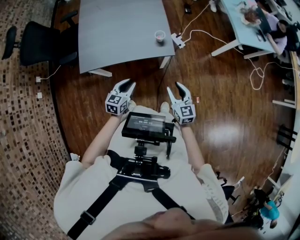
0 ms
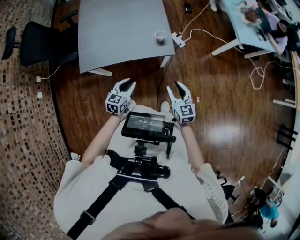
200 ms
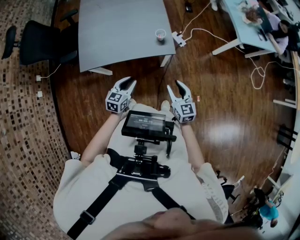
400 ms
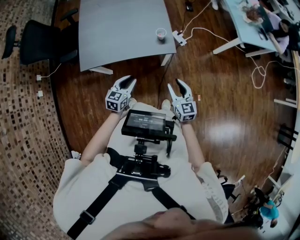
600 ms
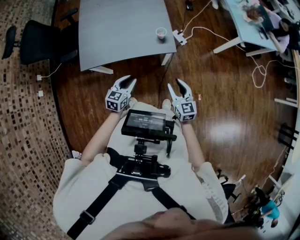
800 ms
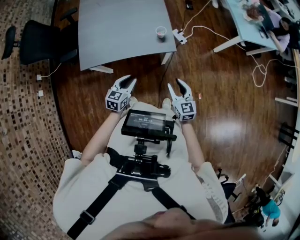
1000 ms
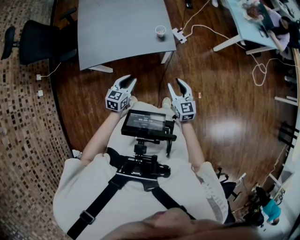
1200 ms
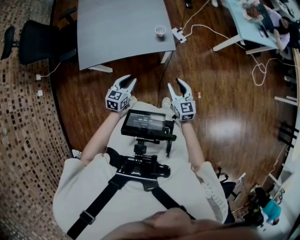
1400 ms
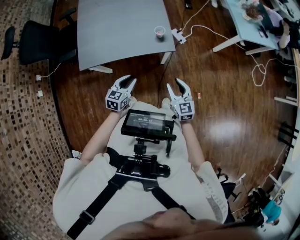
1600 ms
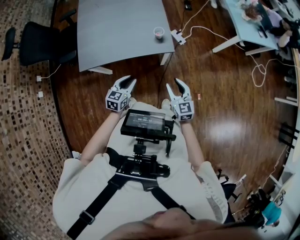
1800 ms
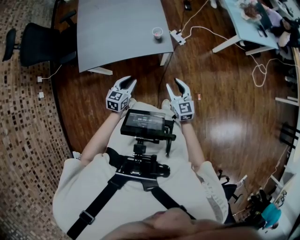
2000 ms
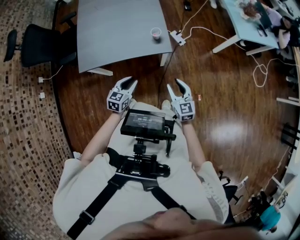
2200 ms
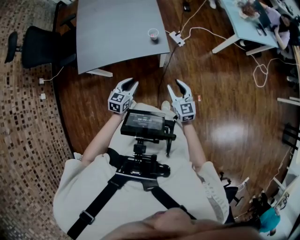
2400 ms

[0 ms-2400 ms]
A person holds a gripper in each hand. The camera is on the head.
0 ms to 1200 ms: Both grippers stay put.
1200 ms to 2400 ms: The grippers move only a little.

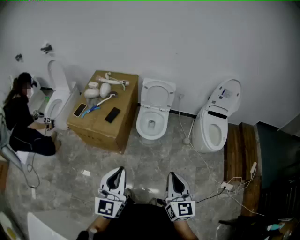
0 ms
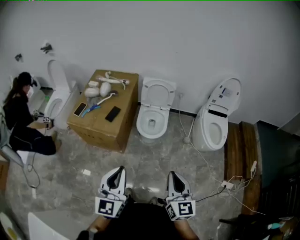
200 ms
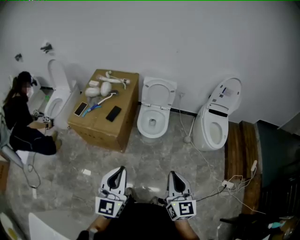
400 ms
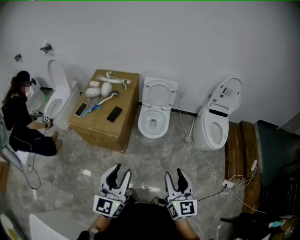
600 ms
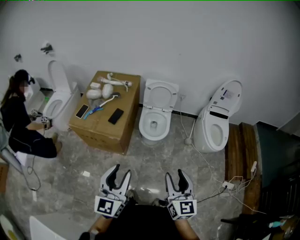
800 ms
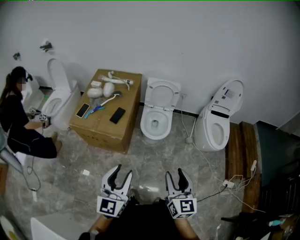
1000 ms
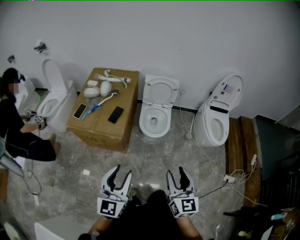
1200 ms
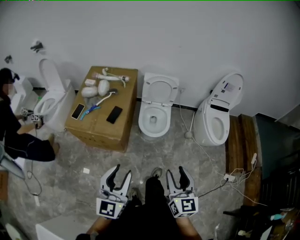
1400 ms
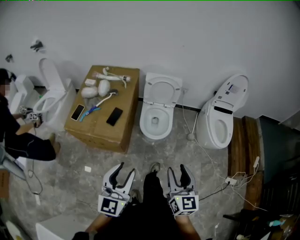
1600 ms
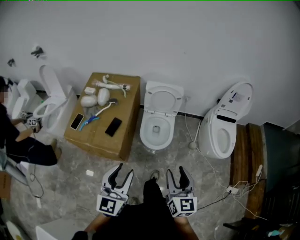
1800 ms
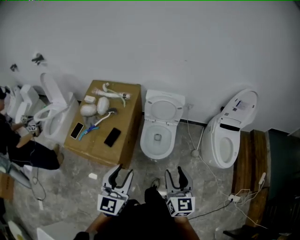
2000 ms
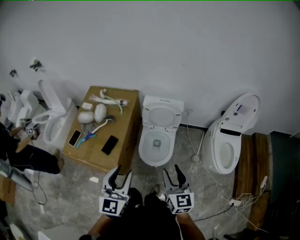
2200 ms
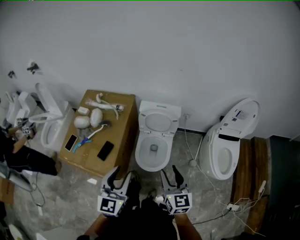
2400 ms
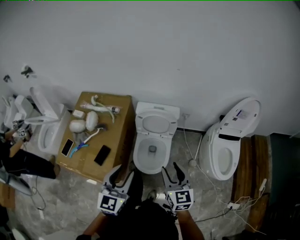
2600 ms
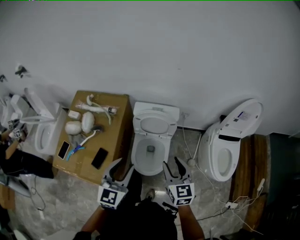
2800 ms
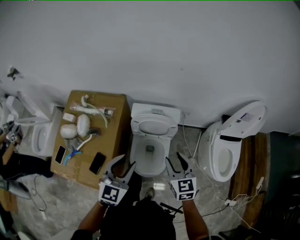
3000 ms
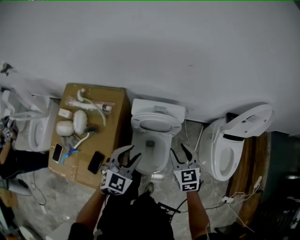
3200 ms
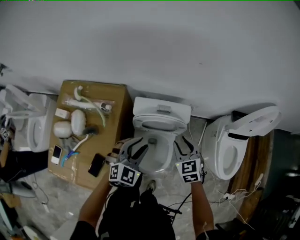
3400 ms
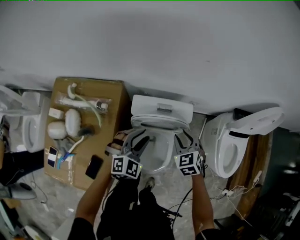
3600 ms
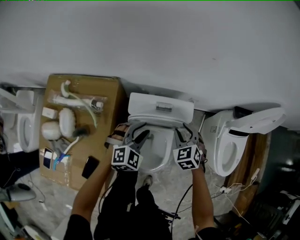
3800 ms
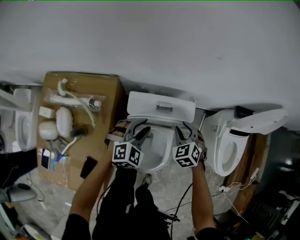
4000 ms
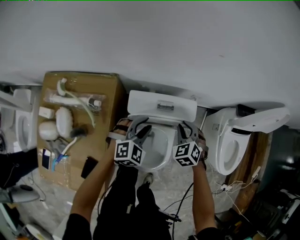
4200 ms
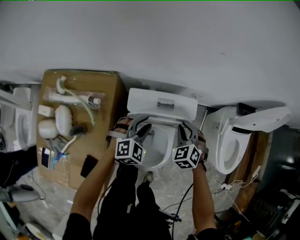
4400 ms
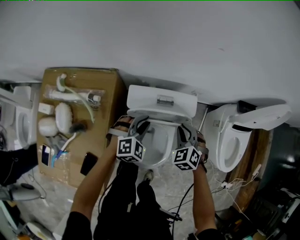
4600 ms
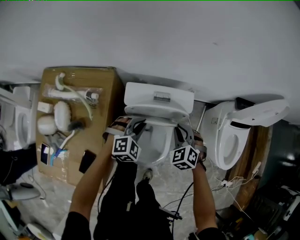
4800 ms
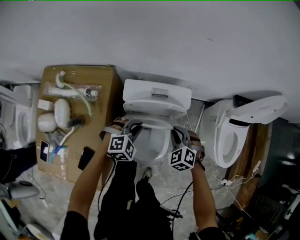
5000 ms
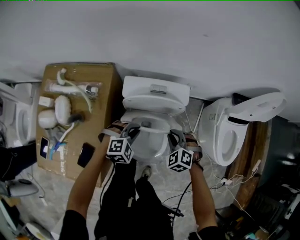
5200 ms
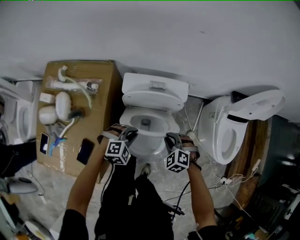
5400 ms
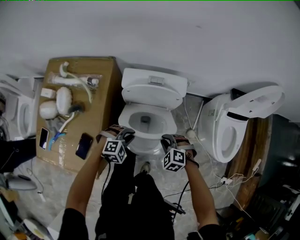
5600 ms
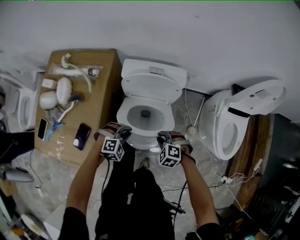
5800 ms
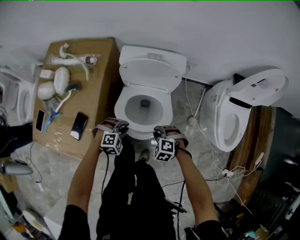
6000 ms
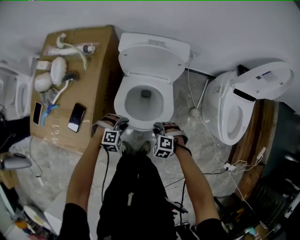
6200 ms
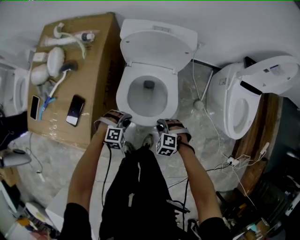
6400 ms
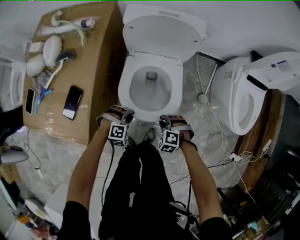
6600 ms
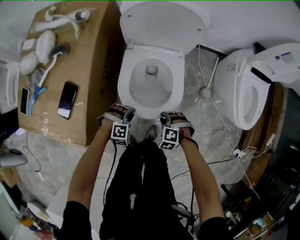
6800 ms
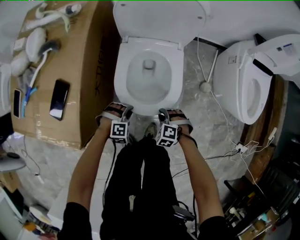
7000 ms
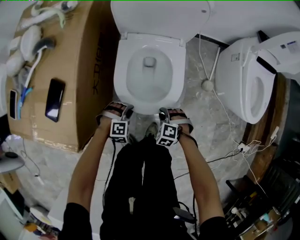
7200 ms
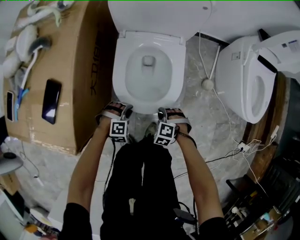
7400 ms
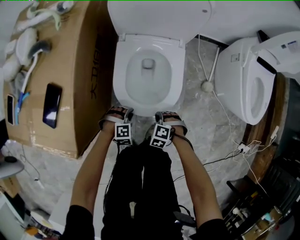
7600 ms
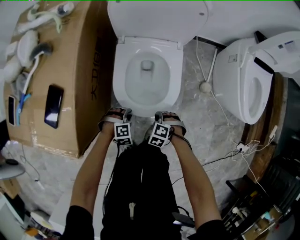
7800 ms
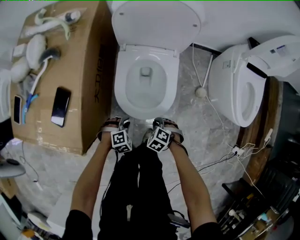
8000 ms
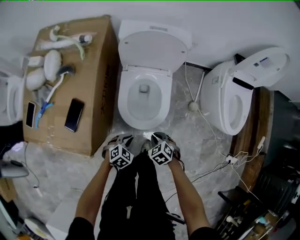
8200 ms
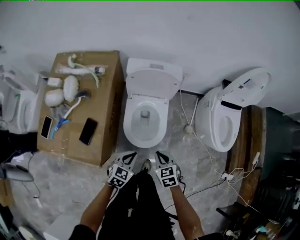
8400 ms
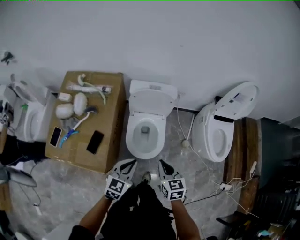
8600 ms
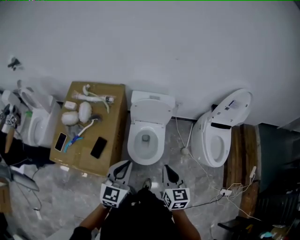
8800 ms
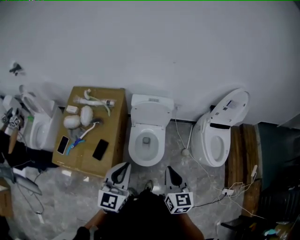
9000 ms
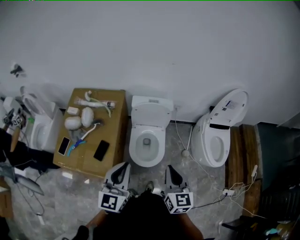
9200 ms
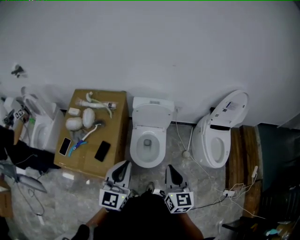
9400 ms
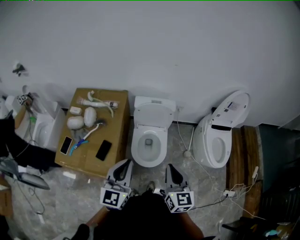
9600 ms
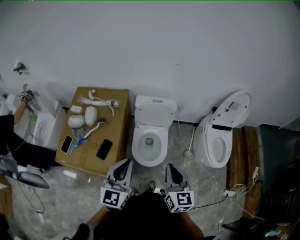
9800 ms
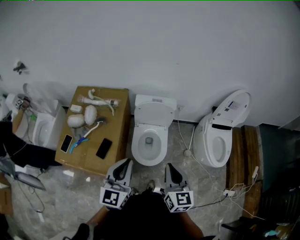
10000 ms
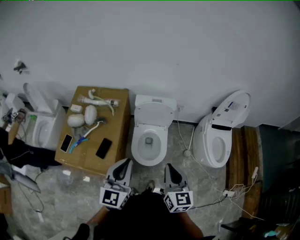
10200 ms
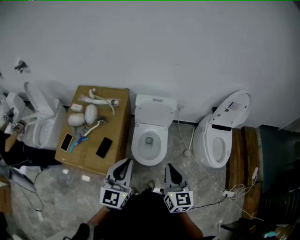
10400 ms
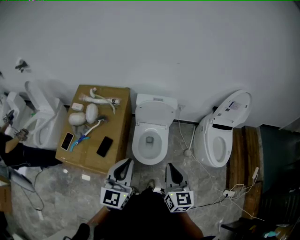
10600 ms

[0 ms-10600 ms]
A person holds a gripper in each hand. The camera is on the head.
0 ms to 1600 ms: Both grippers travel together forward and to the left, about 15 cm. The right gripper opens up, while the left gripper opens.
1600 ms to 3000 ms: Both grippers are carried forward, roughly 50 cm. The left gripper rotates roughly 20 degrees.
3000 ms to 4600 ms: The two grippers go roughly 35 cm downward and forward. The right gripper turns by some 40 degrees, and closes its fingers; the left gripper rotates some 40 degrees.
4600 ms to 6000 ms: The two grippers go about 30 cm backward and downward. The left gripper swivels about 20 degrees. The right gripper rotates approximately 40 degrees.
6000 ms to 7600 ms: The two grippers go roughly 30 cm downward.
7600 ms to 9000 ms: Both grippers move upward, approximately 70 cm. The right gripper tilts its fingers some 60 degrees upward. The left gripper tilts its fingers roughly 60 degrees upward, and closes its fingers.
9000 ms to 10600 ms: There are only small adjustments of the grippers.

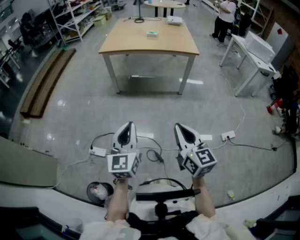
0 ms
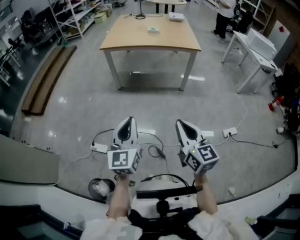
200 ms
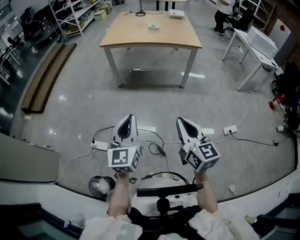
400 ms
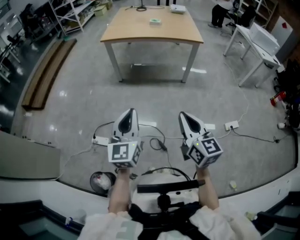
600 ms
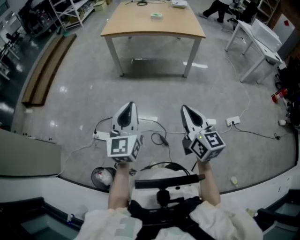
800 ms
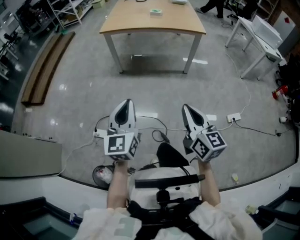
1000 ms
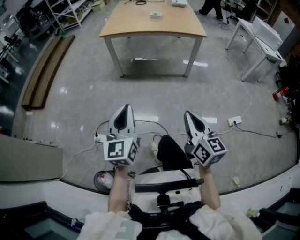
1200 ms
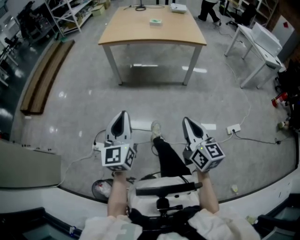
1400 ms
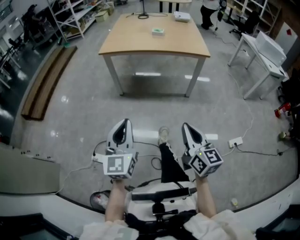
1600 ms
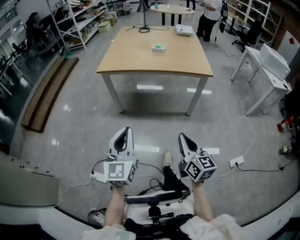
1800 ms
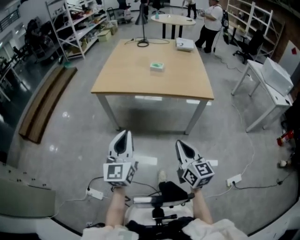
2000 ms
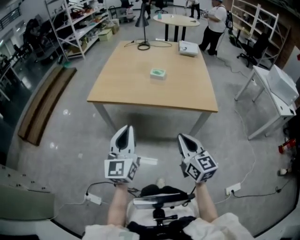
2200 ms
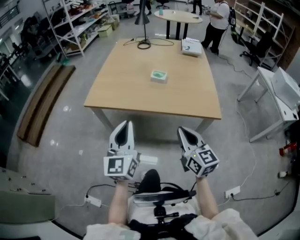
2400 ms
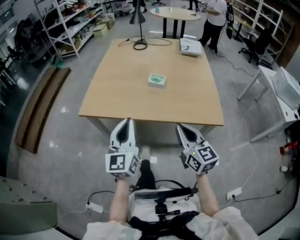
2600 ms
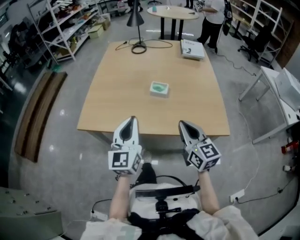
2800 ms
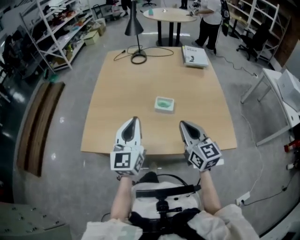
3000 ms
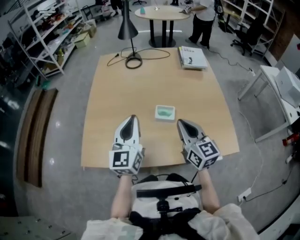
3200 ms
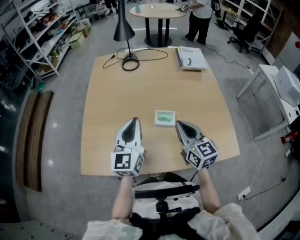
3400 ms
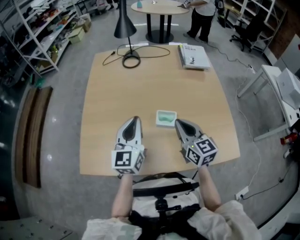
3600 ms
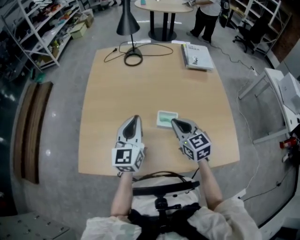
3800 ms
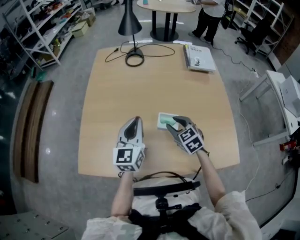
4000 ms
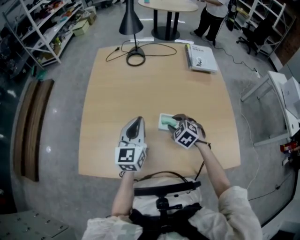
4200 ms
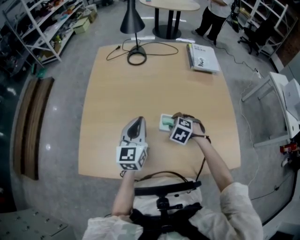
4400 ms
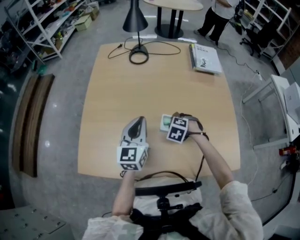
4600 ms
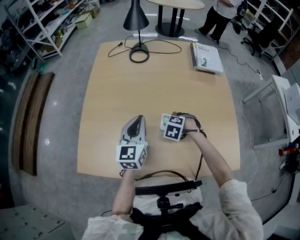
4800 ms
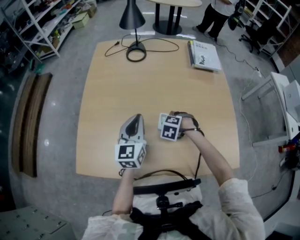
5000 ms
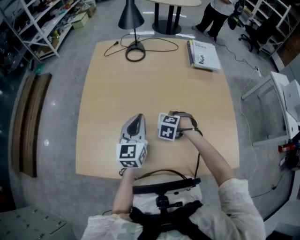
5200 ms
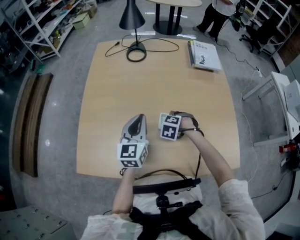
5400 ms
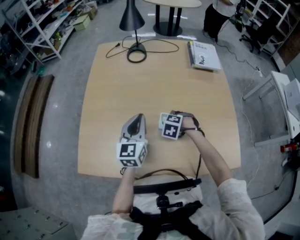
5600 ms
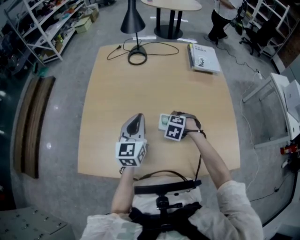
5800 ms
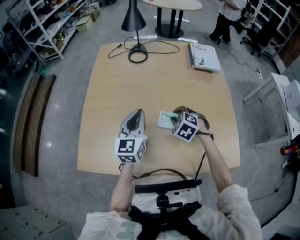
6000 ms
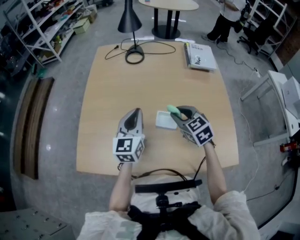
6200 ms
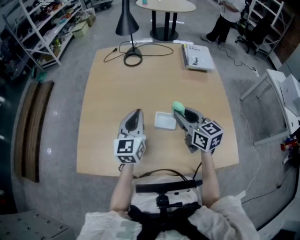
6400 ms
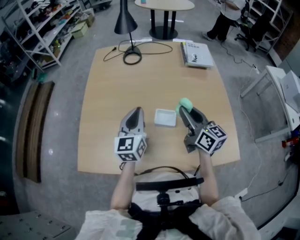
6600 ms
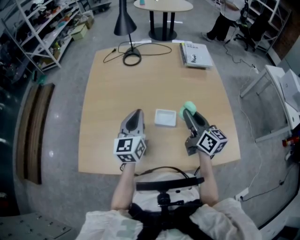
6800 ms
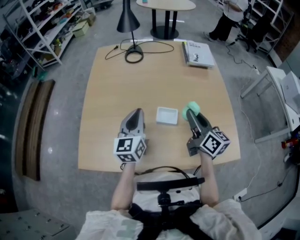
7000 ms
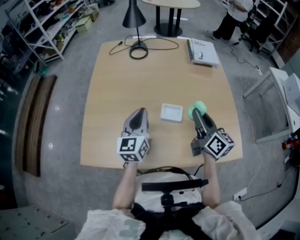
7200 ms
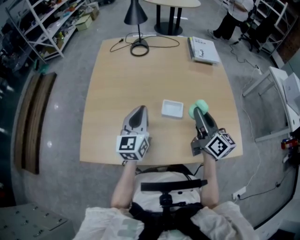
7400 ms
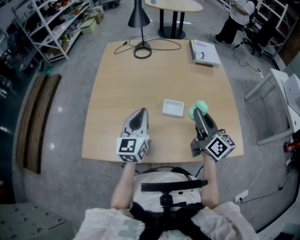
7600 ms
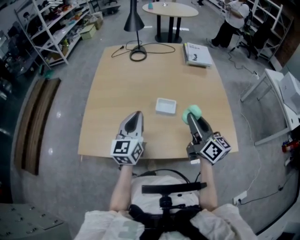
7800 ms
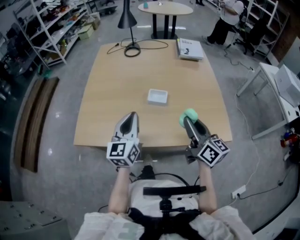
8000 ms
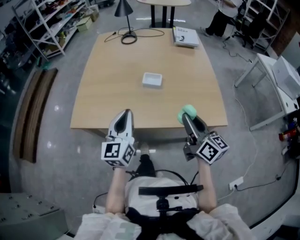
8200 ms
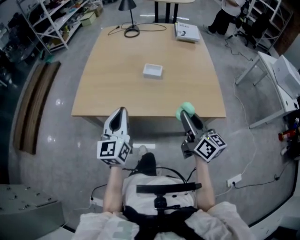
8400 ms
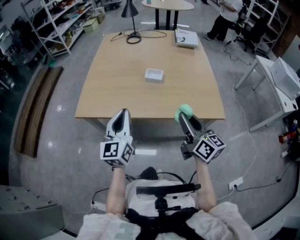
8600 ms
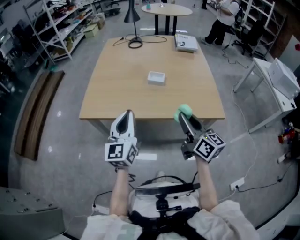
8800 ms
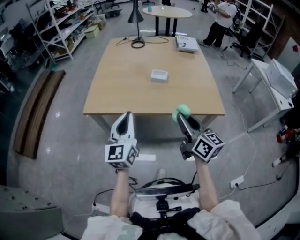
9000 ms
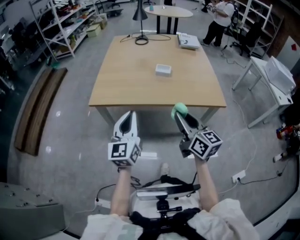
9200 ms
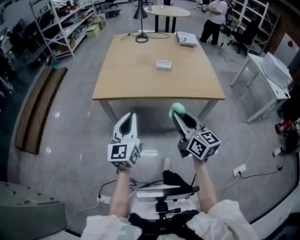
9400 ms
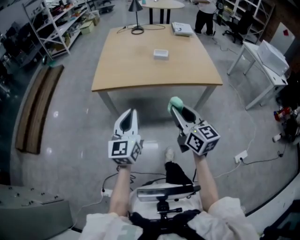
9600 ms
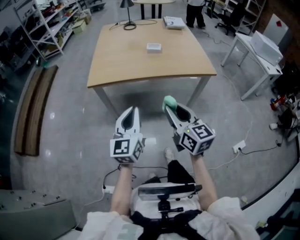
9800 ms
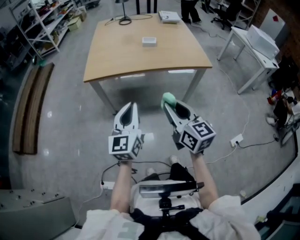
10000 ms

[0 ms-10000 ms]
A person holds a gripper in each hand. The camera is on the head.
0 ms to 1400 ms: The two grippers go about 5 cm forward.
1400 ms to 2800 ms: Both grippers are carried forward, about 80 cm.
2800 ms to 4200 ms: The right gripper travels forward and downward by roughly 40 cm, points its fingers some 50 degrees further downward, and opens its fingers. Meanwhile the left gripper moves forward, approximately 35 cm.
4200 ms to 5800 ms: The right gripper rotates roughly 30 degrees.
5800 ms to 7200 ms: The right gripper goes roughly 20 cm upward, and tips its fingers upward by roughly 70 degrees.
7200 ms to 8600 ms: The two grippers go approximately 35 cm backward.
8600 ms to 10000 ms: The left gripper shifts some 30 cm backward, while the right gripper is displaced backward and to the left by some 40 cm.

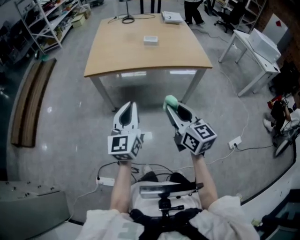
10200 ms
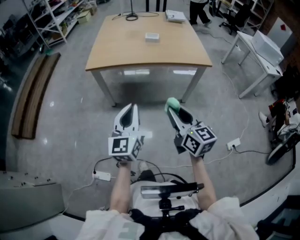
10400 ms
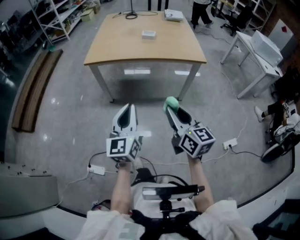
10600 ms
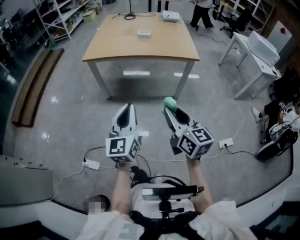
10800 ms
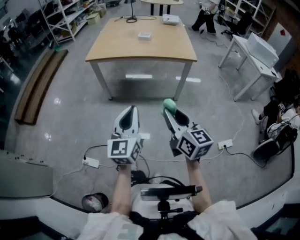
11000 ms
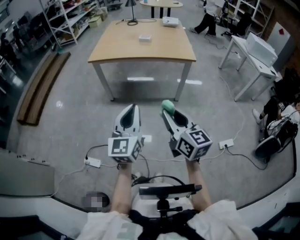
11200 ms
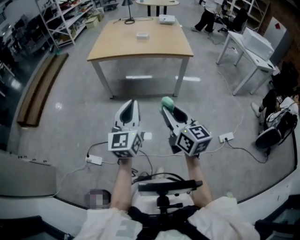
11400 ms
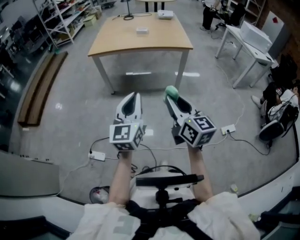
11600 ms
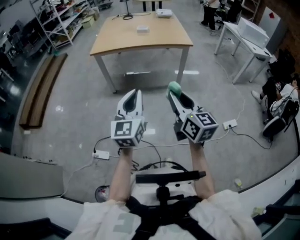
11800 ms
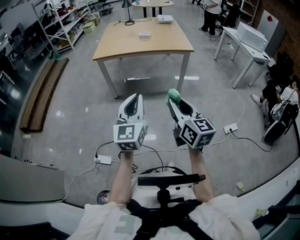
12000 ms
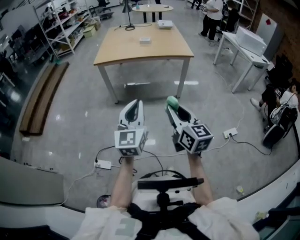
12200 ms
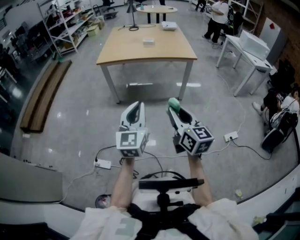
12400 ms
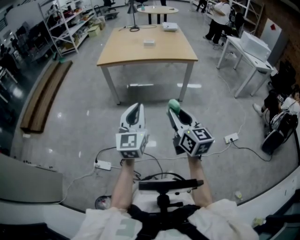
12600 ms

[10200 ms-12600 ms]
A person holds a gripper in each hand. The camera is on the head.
10200 ms to 11400 ms: The two grippers go approximately 30 cm backward.
11400 ms to 12600 ms: Both grippers travel together to the left, approximately 5 cm.
